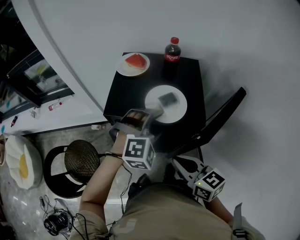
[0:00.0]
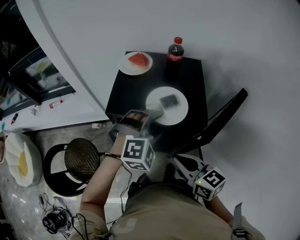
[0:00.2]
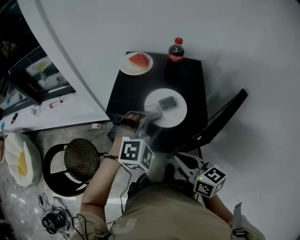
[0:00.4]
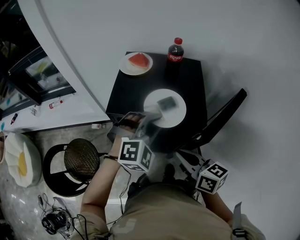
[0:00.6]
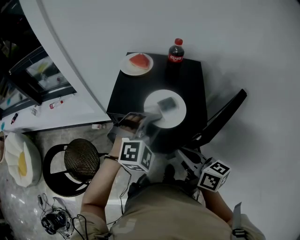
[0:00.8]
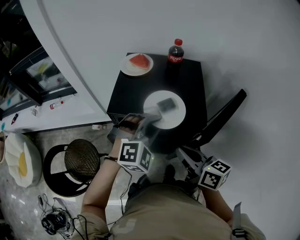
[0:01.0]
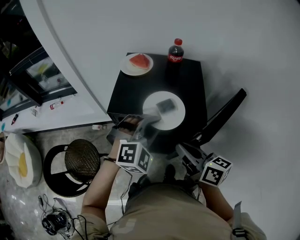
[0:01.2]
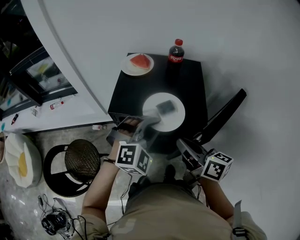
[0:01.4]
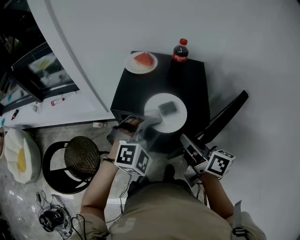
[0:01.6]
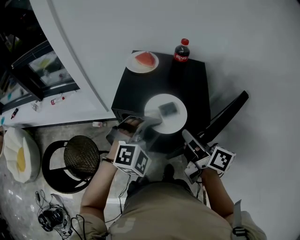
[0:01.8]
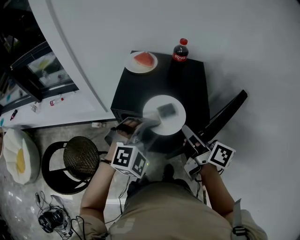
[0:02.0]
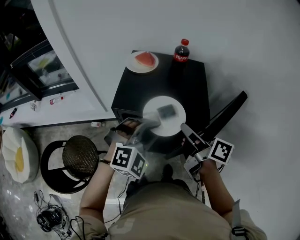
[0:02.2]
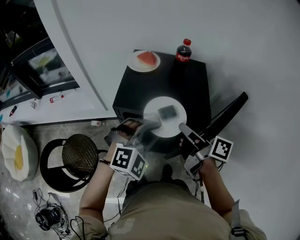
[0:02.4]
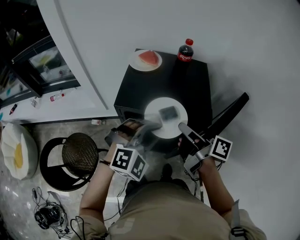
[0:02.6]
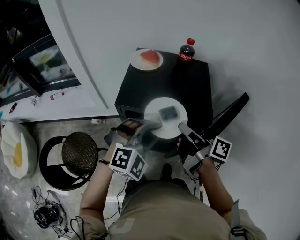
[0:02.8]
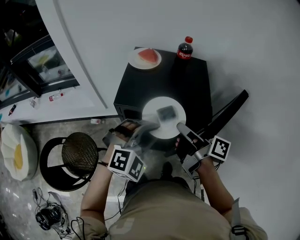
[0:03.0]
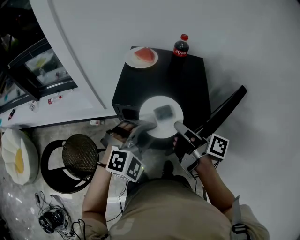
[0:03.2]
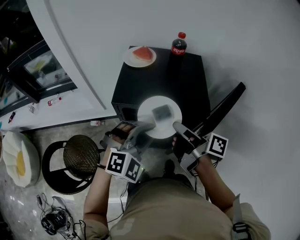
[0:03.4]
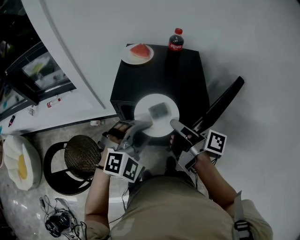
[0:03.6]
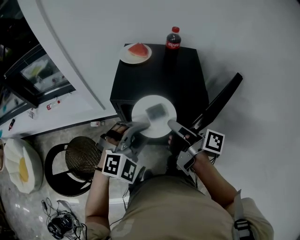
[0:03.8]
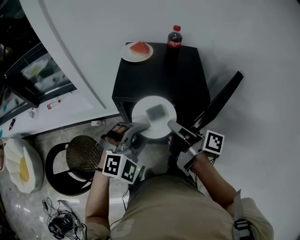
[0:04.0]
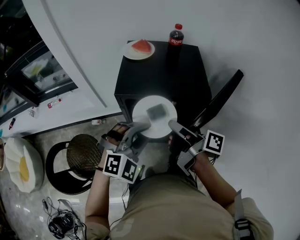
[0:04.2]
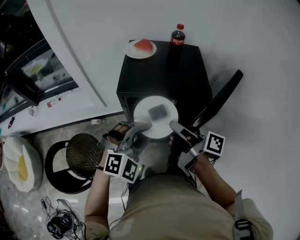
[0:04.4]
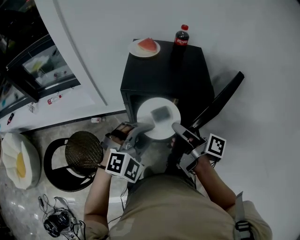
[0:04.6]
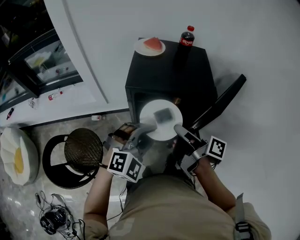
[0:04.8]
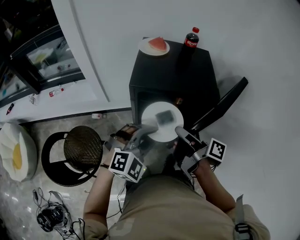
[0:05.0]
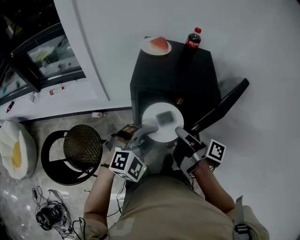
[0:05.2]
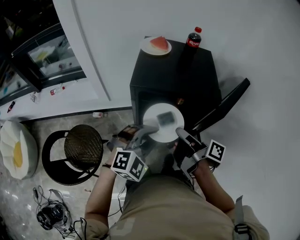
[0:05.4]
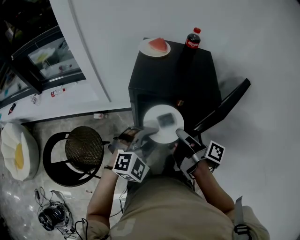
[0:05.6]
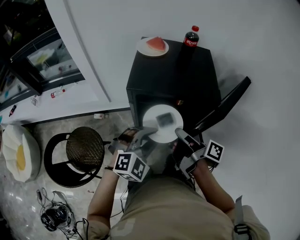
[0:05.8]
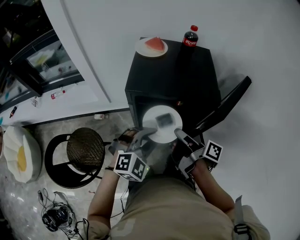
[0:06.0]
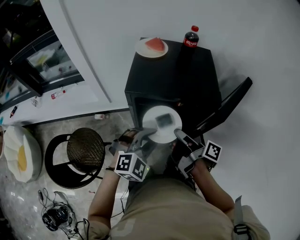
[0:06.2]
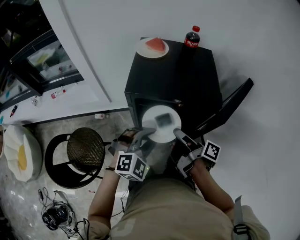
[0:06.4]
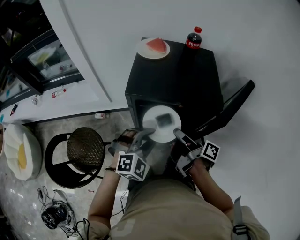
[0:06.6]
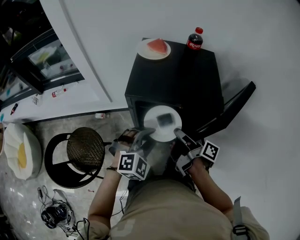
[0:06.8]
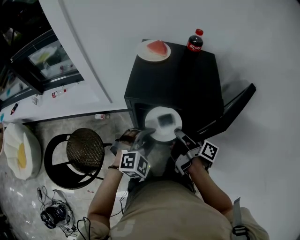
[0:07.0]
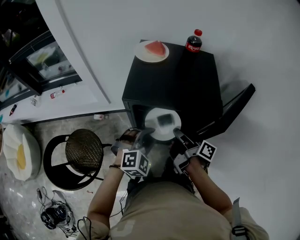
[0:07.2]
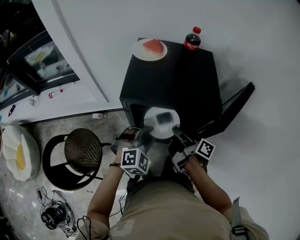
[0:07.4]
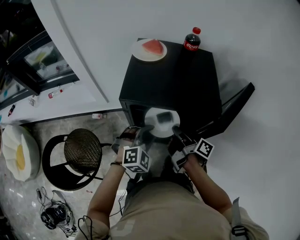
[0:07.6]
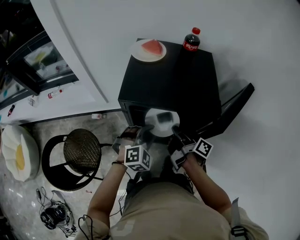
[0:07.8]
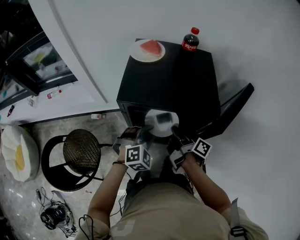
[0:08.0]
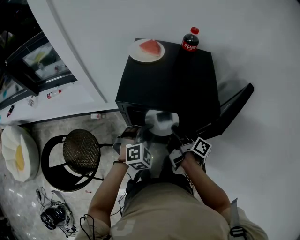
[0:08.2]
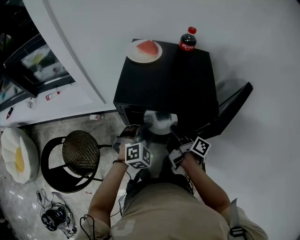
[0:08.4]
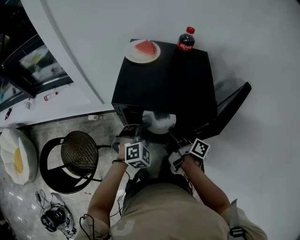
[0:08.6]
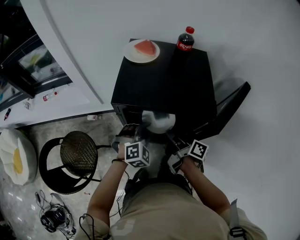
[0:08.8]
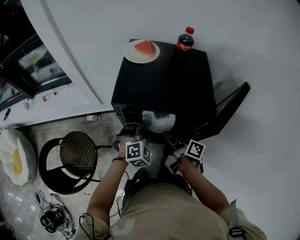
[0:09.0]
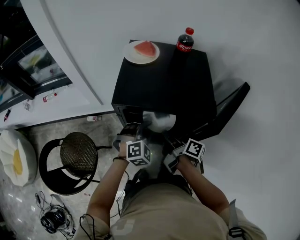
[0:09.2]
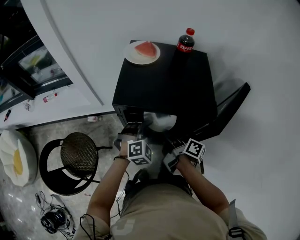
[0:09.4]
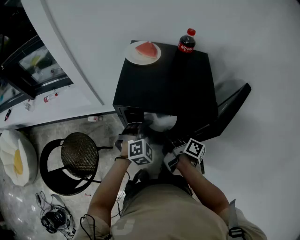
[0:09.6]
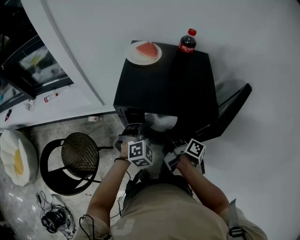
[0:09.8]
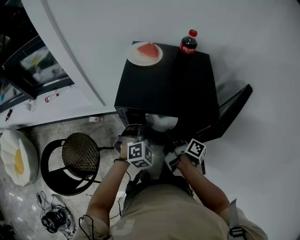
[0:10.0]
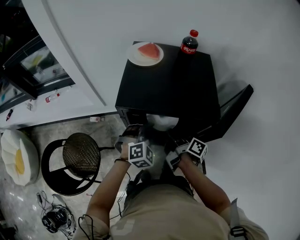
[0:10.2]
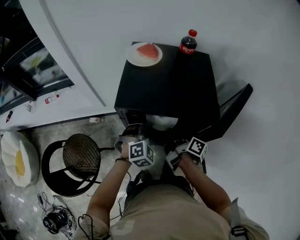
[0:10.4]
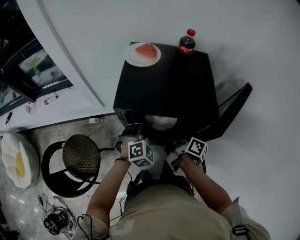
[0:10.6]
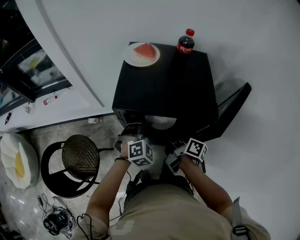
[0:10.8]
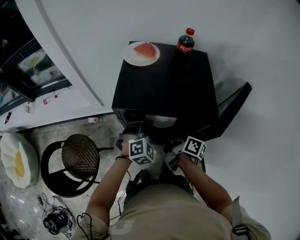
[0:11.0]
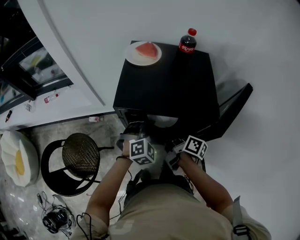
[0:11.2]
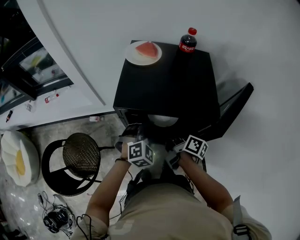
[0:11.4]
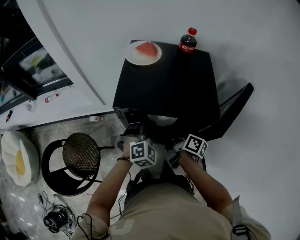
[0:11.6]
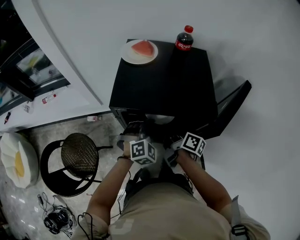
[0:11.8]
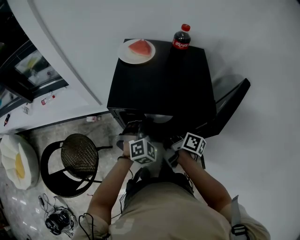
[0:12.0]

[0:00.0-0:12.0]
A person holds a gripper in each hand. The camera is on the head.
0:00.0 to 0:01.6: The left gripper closes up, while the right gripper shifts approximately 5 cm forward, and turns by some 30 degrees.
0:01.6 to 0:03.0: The right gripper rotates roughly 30 degrees. The left gripper changes place by some 5 cm.
0:03.0 to 0:04.4: The left gripper changes place by about 5 cm, while the right gripper moves backward, approximately 5 cm.
0:04.4 to 0:06.0: Both grippers travel together downward, some 5 cm.
0:06.0 to 0:07.6: Both grippers travel together forward and downward, roughly 10 cm.
0:07.6 to 0:09.0: The left gripper ends up some 5 cm from where it was.
0:09.0 to 0:12.0: The grippers stay close to where they were, moving slightly.

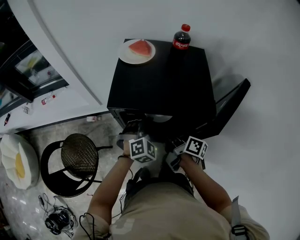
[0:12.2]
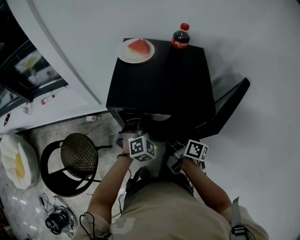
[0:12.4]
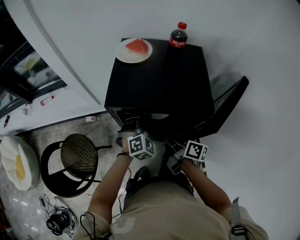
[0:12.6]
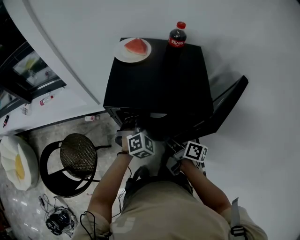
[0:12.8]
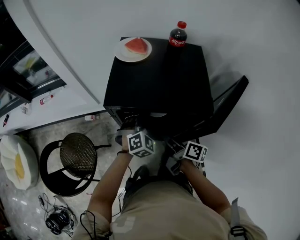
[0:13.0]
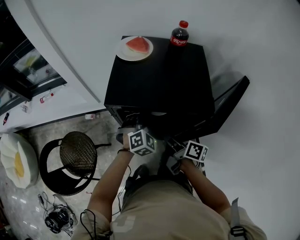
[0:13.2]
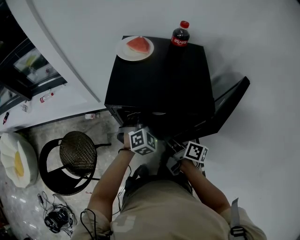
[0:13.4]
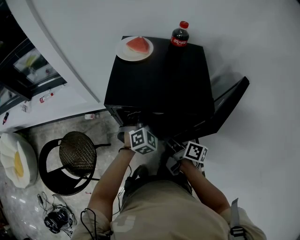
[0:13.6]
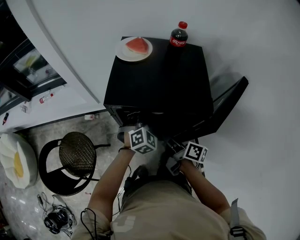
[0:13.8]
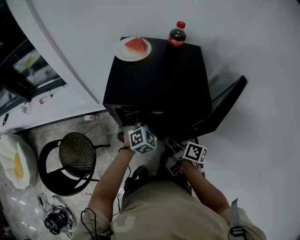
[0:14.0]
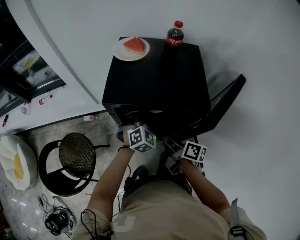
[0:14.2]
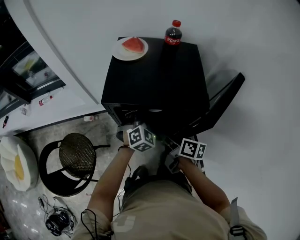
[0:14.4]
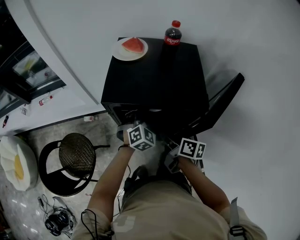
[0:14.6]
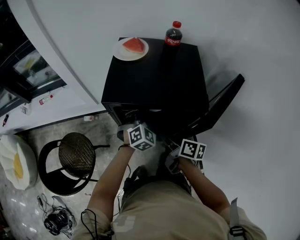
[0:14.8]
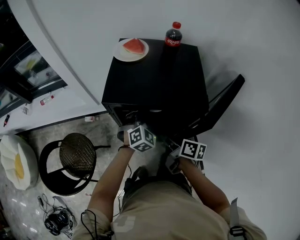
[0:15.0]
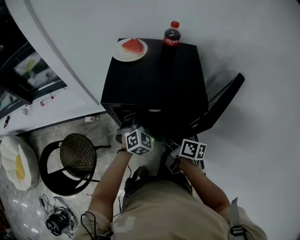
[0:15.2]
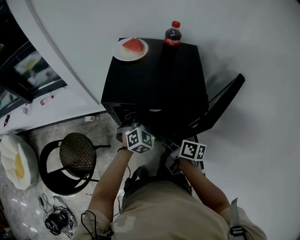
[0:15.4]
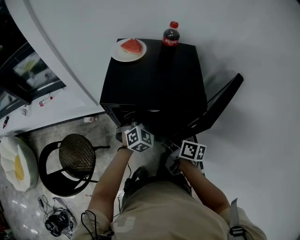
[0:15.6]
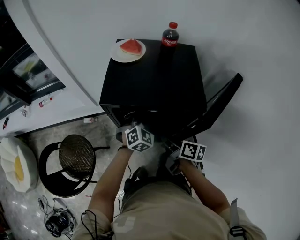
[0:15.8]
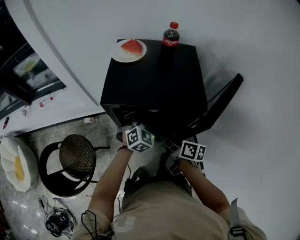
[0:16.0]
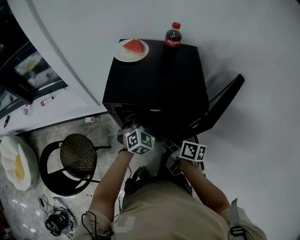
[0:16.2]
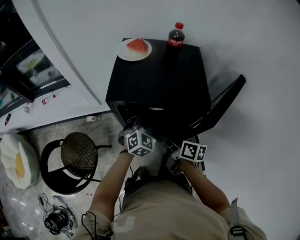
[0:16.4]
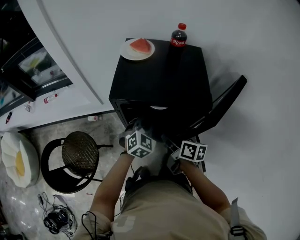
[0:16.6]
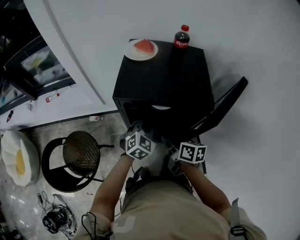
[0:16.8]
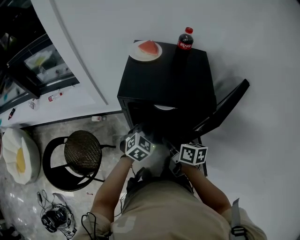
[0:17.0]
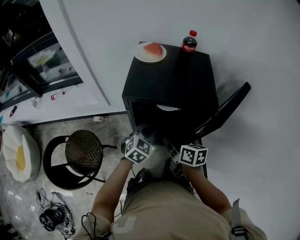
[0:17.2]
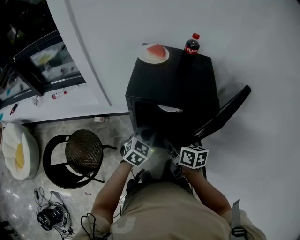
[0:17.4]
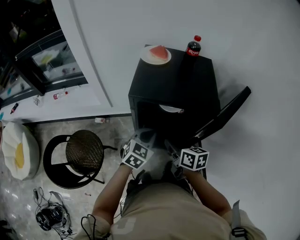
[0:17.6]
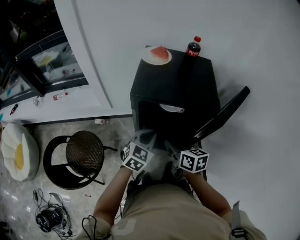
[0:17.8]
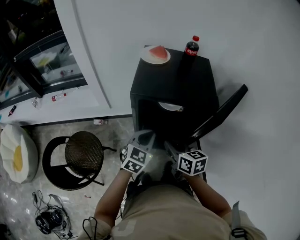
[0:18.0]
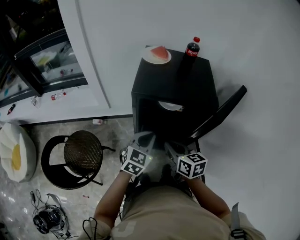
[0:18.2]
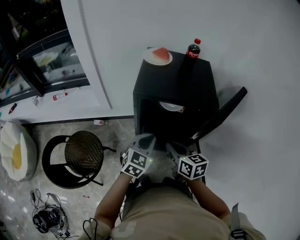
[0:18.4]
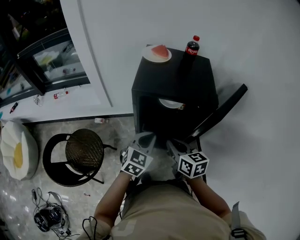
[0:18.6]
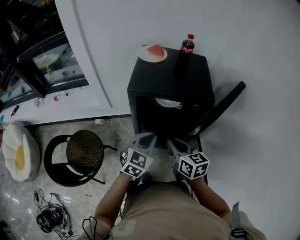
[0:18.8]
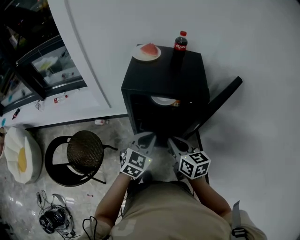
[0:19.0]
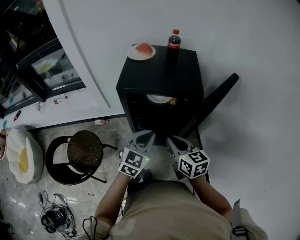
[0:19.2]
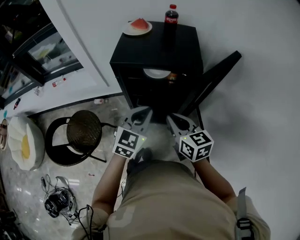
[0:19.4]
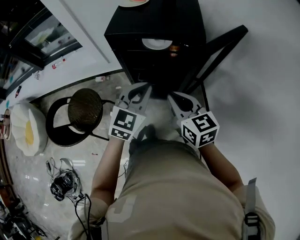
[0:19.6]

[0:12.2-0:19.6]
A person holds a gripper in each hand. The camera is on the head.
0:12.2 to 0:15.2: The grippers stay close to where they were, moving slightly.
0:15.2 to 0:16.6: The grippers make only small movements.
0:16.6 to 0:18.2: The left gripper heads backward and to the left, covering roughly 10 cm, while the right gripper shifts about 10 cm backward and to the left, and turns by approximately 30 degrees.
0:18.2 to 0:19.6: The right gripper travels to the right, upward and backward by about 10 cm. The left gripper is displaced upward, to the right and backward by roughly 10 cm.

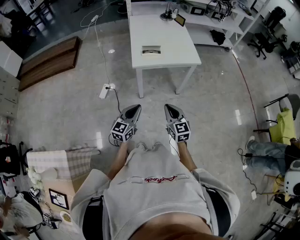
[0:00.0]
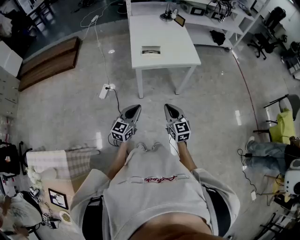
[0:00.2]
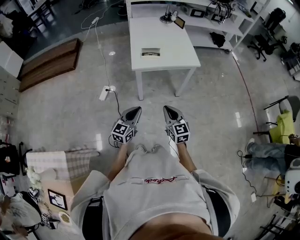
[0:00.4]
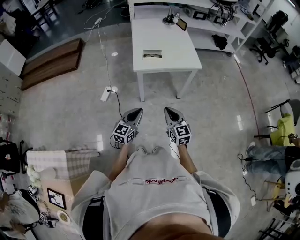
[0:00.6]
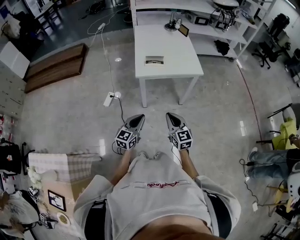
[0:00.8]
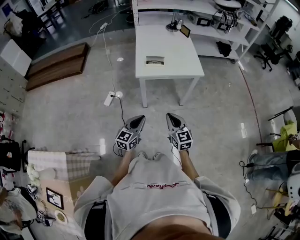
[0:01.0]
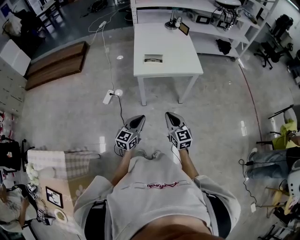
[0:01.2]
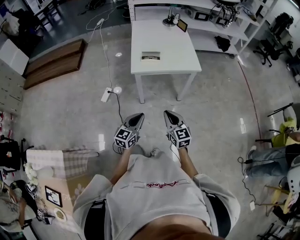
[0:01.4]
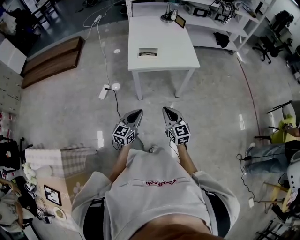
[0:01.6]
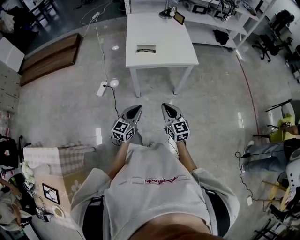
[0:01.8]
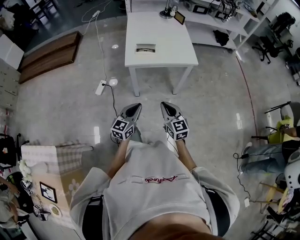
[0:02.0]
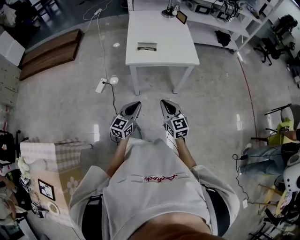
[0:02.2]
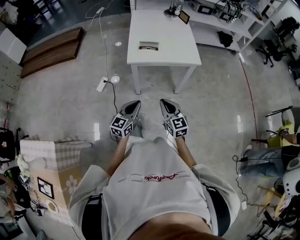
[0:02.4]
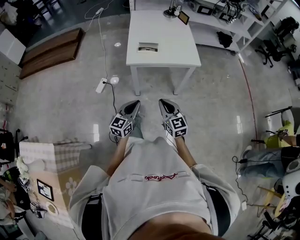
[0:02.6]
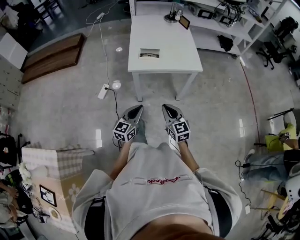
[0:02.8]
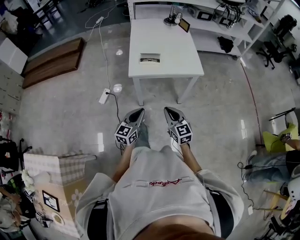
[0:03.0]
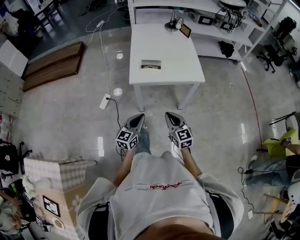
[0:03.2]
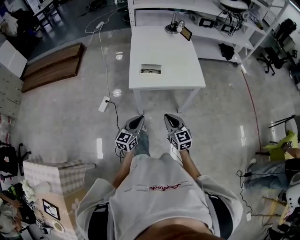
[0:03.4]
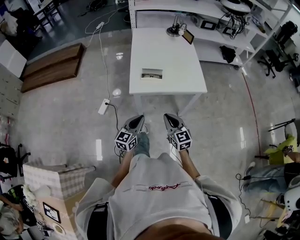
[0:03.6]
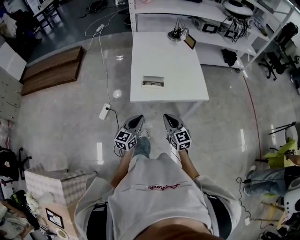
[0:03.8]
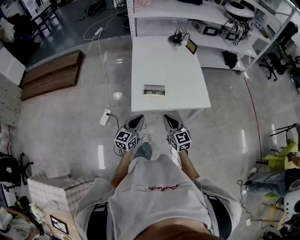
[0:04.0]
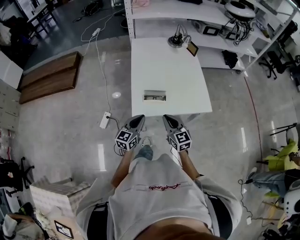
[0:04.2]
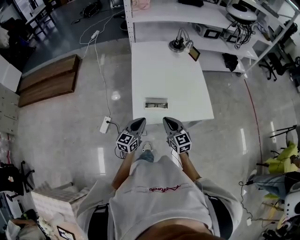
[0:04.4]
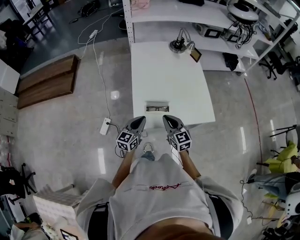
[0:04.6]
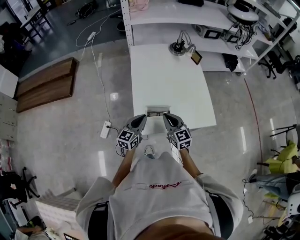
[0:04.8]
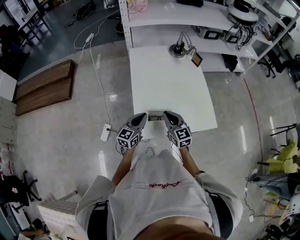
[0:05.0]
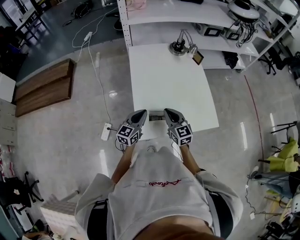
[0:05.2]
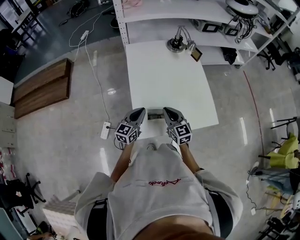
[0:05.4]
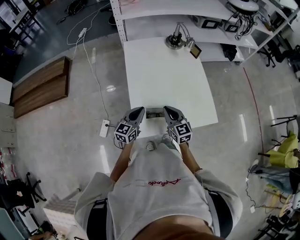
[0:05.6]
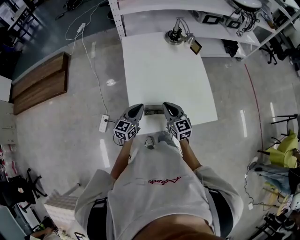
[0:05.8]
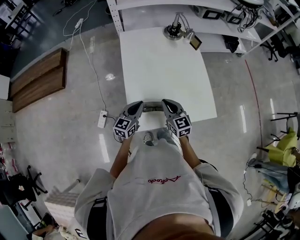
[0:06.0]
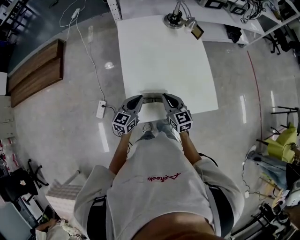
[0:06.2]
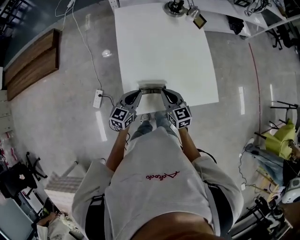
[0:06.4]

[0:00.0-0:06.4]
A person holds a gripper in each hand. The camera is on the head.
0:00.0 to 0:01.6: The left gripper heads to the right, covering approximately 5 cm.
0:01.6 to 0:03.2: The two grippers go approximately 10 cm forward.
0:03.2 to 0:04.8: Both grippers travel together forward, about 35 cm.
0:04.8 to 0:06.4: The left gripper shifts by roughly 5 cm; the right gripper goes approximately 5 cm downward.
